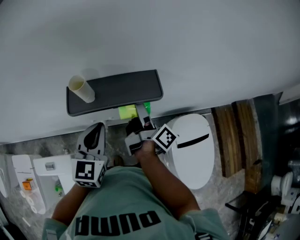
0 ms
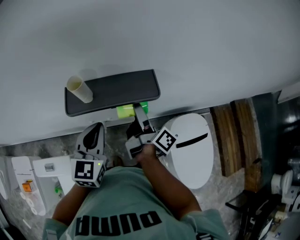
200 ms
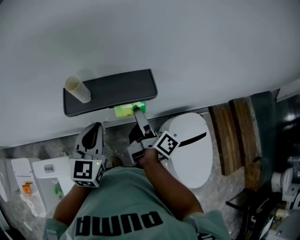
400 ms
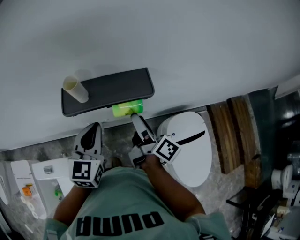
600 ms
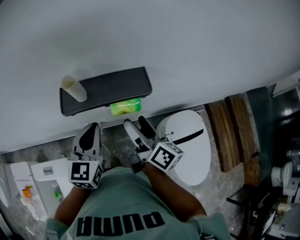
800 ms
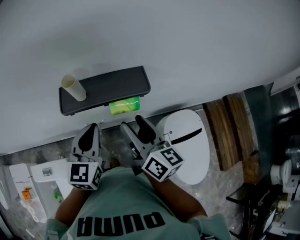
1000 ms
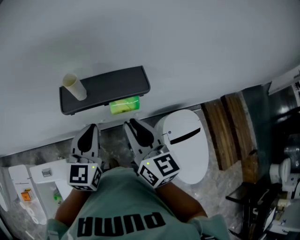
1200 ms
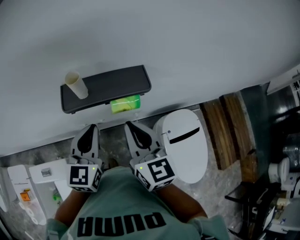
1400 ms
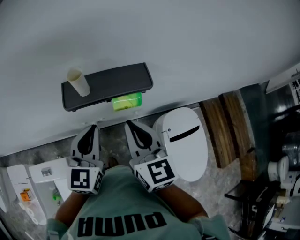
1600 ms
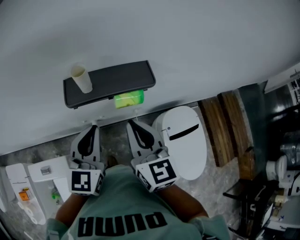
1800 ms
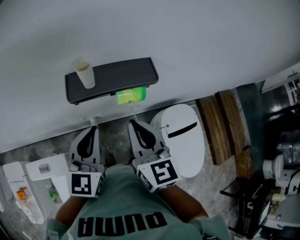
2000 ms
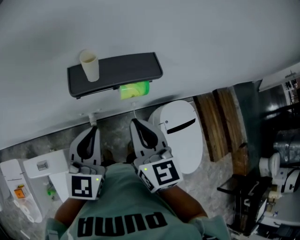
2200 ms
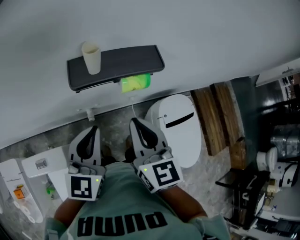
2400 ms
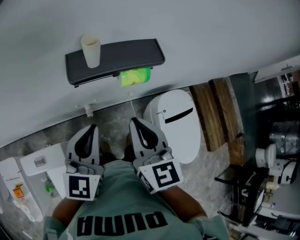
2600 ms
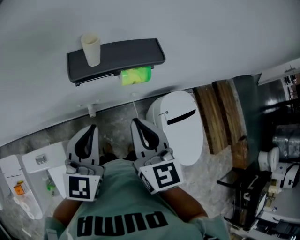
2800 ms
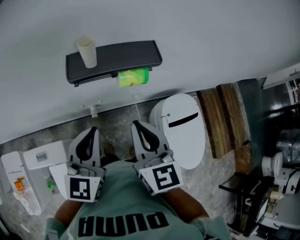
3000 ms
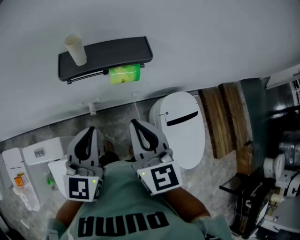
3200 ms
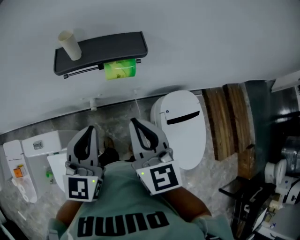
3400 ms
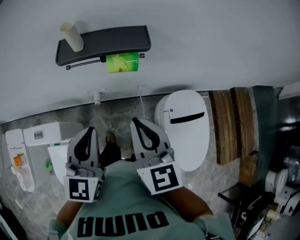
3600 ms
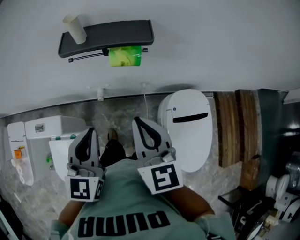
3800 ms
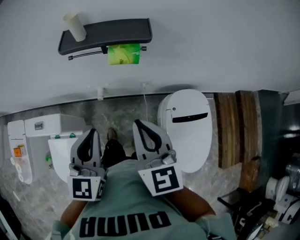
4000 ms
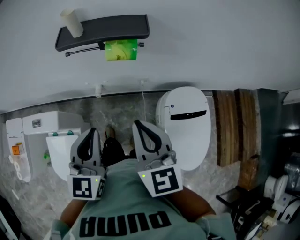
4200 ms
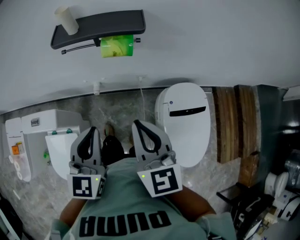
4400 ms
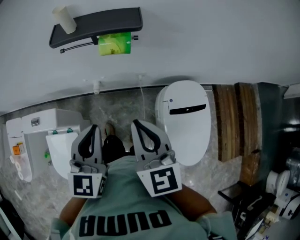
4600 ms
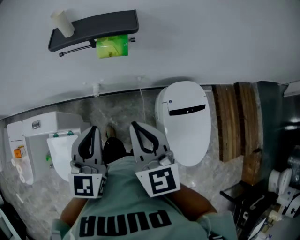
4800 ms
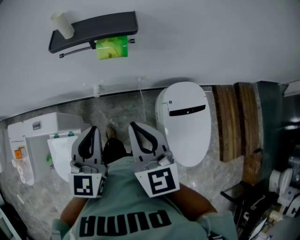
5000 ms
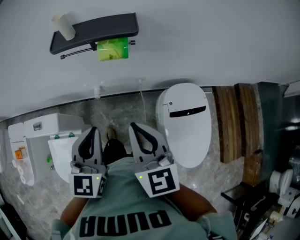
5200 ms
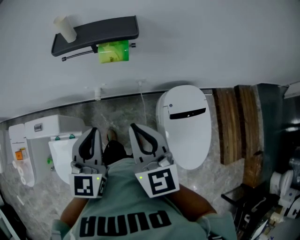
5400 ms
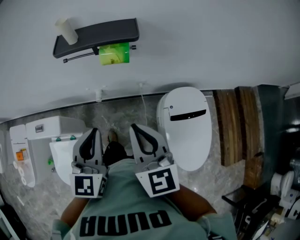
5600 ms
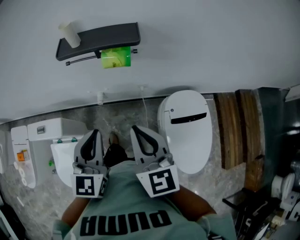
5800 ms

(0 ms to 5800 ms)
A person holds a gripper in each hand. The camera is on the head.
0 ms - 1400 ms: The right gripper travels backward and upward by roughly 15 cm, rolls counterclockwise, seen from behind, by roughly 80 degrees, and closes up.
1400 ms - 2800 ms: Both grippers move backward, approximately 5 cm.
2800 ms - 4400 ms: The right gripper is displaced to the right and backward by about 15 cm. The left gripper is displaced backward and to the right by approximately 15 cm.
4400 ms - 5800 ms: Both grippers stay about where they are.

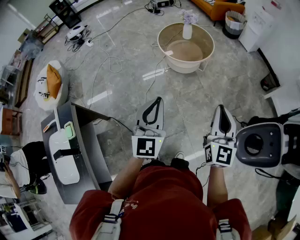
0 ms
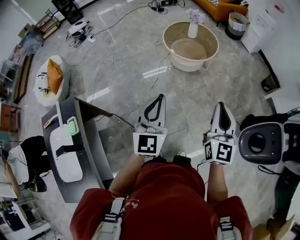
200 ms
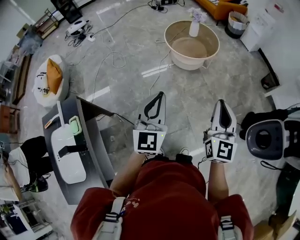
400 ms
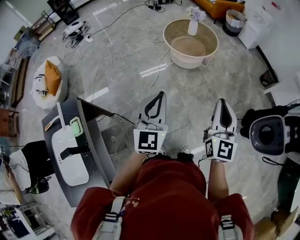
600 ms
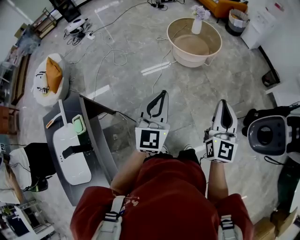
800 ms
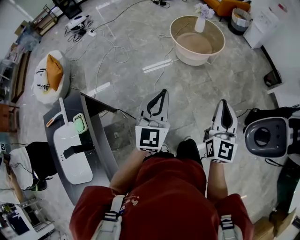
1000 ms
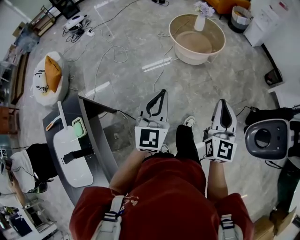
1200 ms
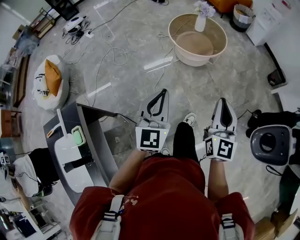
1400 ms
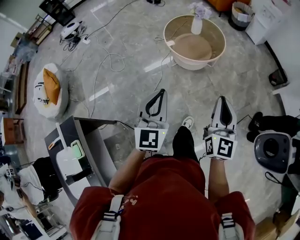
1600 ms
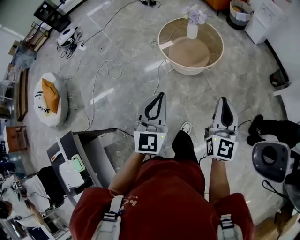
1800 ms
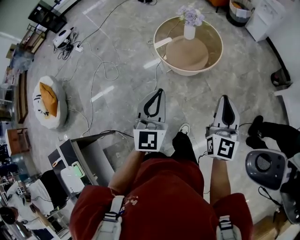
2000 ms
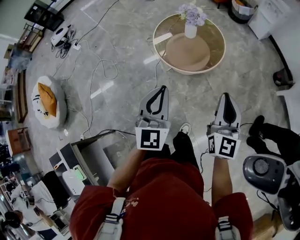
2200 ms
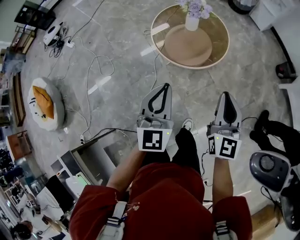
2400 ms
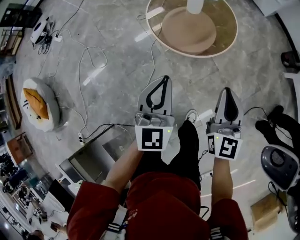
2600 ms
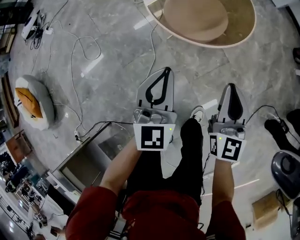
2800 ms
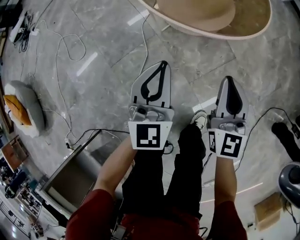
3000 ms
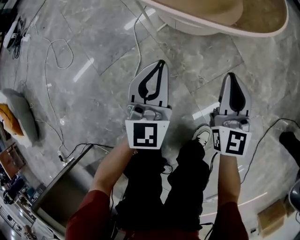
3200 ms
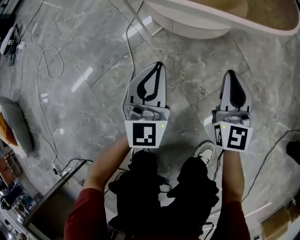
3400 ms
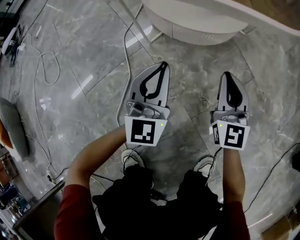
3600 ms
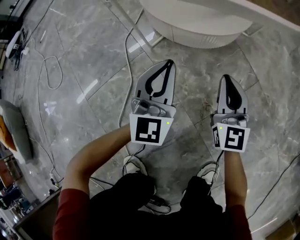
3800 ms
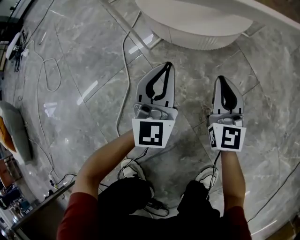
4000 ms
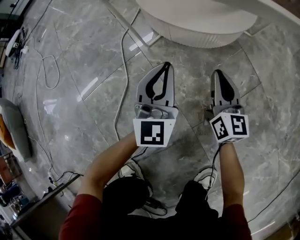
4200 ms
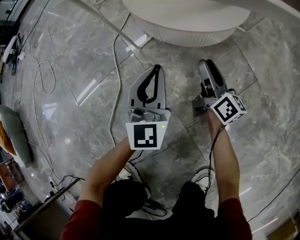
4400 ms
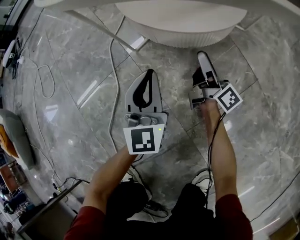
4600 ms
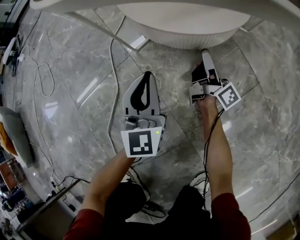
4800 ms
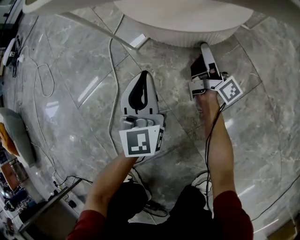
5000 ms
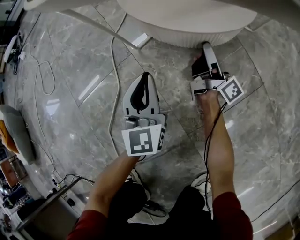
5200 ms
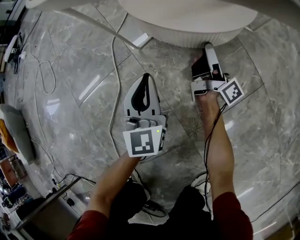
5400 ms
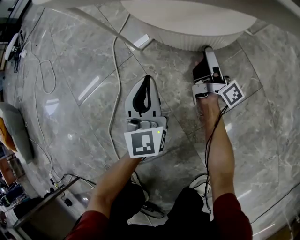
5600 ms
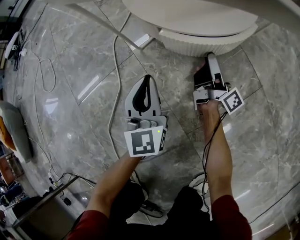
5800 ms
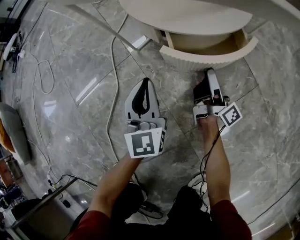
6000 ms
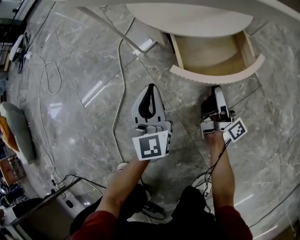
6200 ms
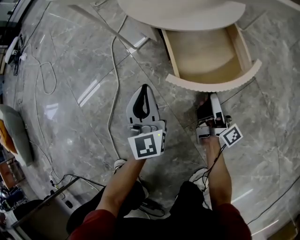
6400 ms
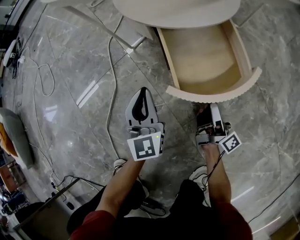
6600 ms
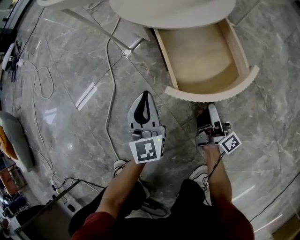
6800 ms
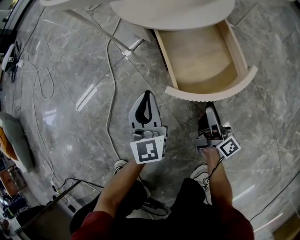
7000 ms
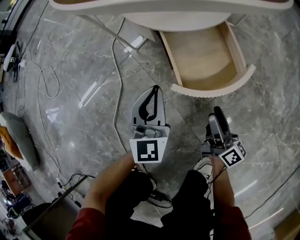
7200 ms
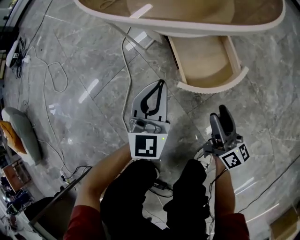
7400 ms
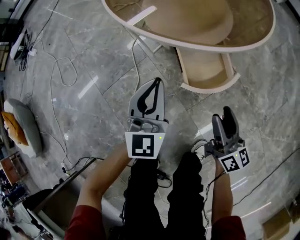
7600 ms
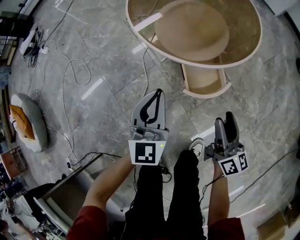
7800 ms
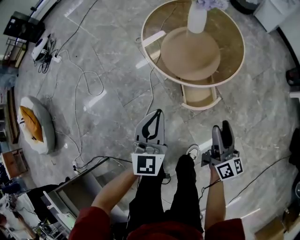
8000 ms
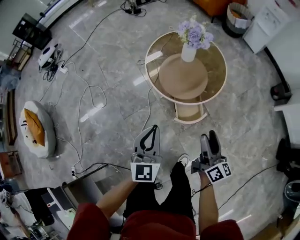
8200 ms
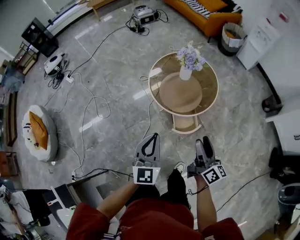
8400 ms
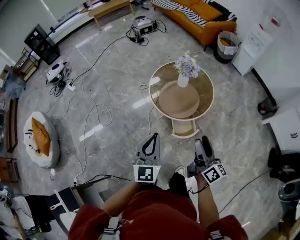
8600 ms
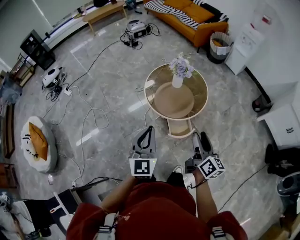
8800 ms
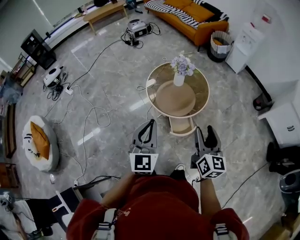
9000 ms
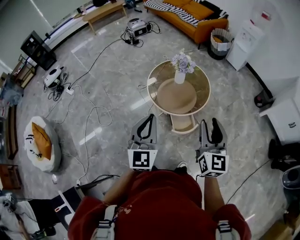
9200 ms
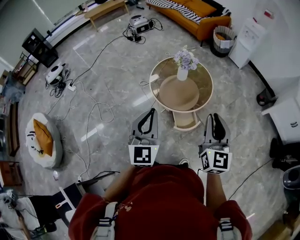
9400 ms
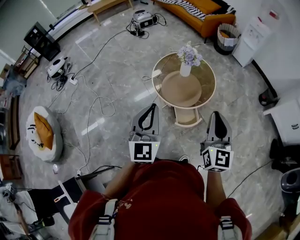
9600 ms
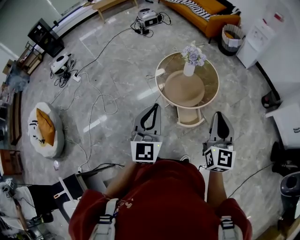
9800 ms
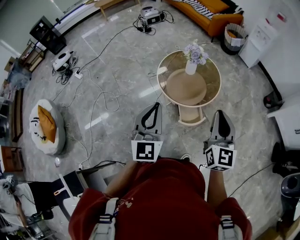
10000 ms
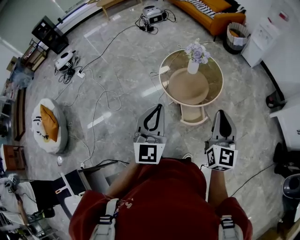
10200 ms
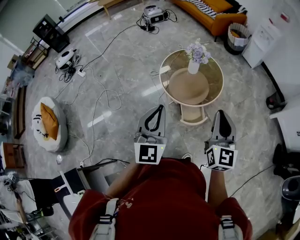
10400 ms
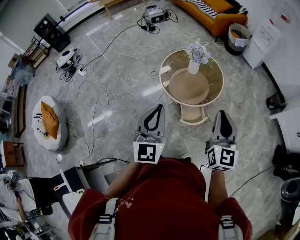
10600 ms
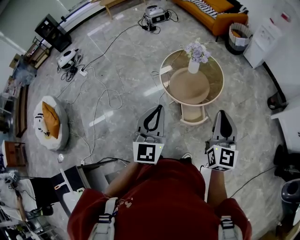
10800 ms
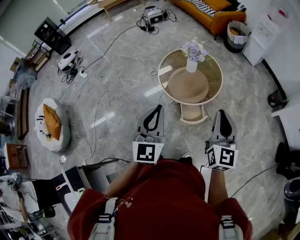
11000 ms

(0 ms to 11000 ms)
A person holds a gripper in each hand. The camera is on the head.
0 ms - 1600 ms: The two grippers go about 15 cm forward and to the left.
1600 ms - 3200 ms: The two grippers go approximately 70 cm downward and forward.
3200 ms - 4800 ms: The right gripper heads downward and forward, covering about 35 cm, rotates around the line of its fingers by approximately 70 degrees, clockwise from behind, and opens; the left gripper heads downward, covering some 25 cm.
4800 ms - 6200 ms: The right gripper moves backward, some 10 cm.
6200 ms - 7800 ms: The grippers both shift upward by roughly 40 cm. The right gripper turns by about 40 degrees.
7800 ms - 9400 ms: Both grippers move upward, about 50 cm. The right gripper rotates about 40 degrees, and closes.
9400 ms - 11000 ms: There are only small adjustments of the grippers.

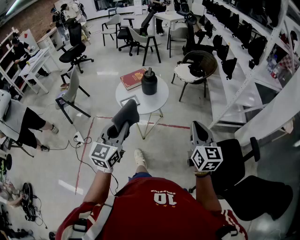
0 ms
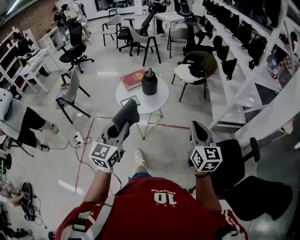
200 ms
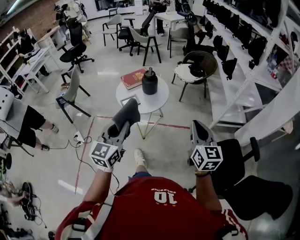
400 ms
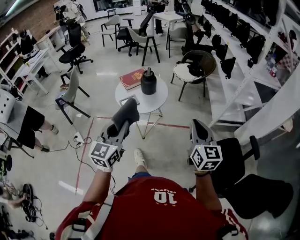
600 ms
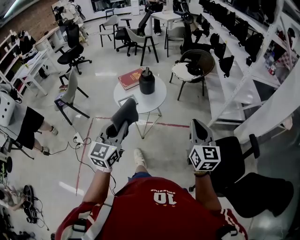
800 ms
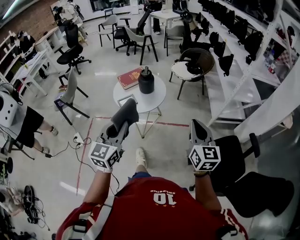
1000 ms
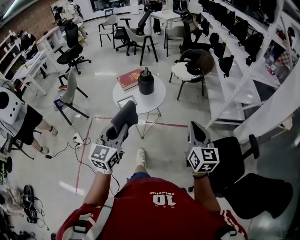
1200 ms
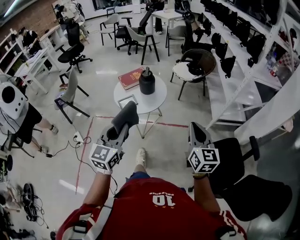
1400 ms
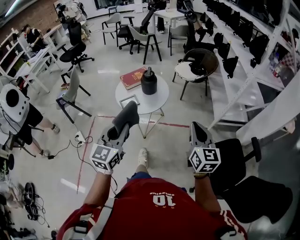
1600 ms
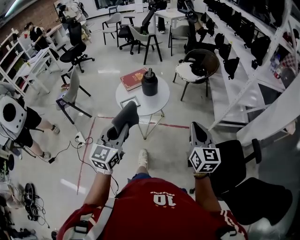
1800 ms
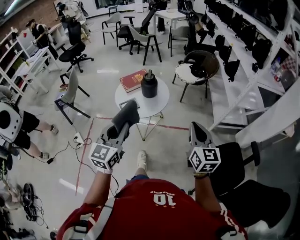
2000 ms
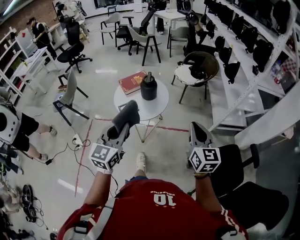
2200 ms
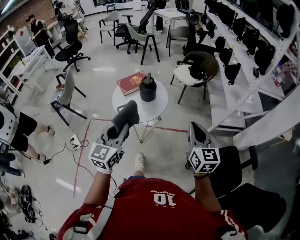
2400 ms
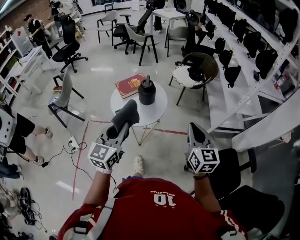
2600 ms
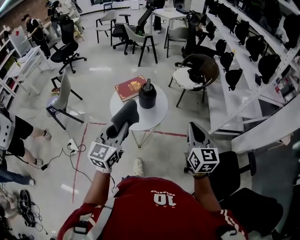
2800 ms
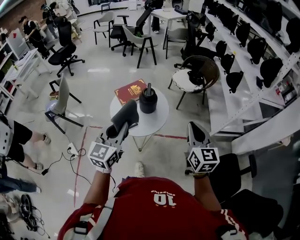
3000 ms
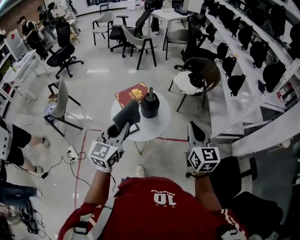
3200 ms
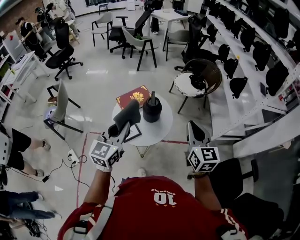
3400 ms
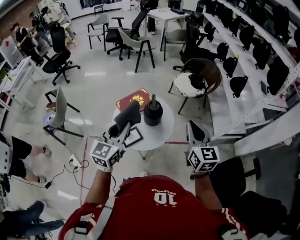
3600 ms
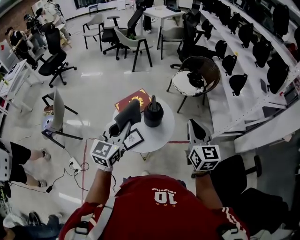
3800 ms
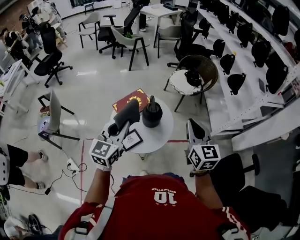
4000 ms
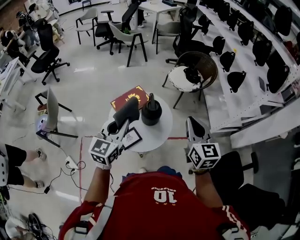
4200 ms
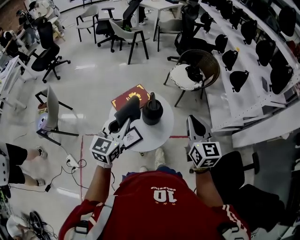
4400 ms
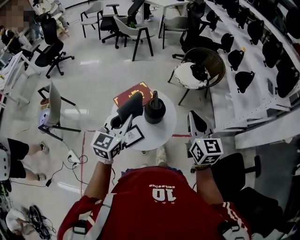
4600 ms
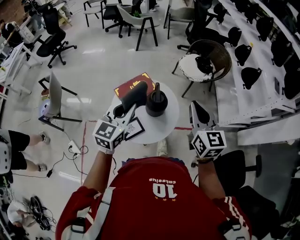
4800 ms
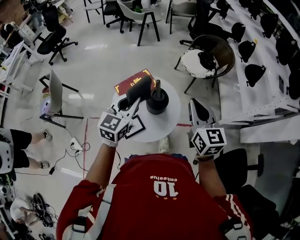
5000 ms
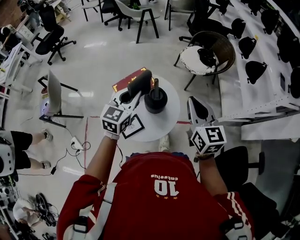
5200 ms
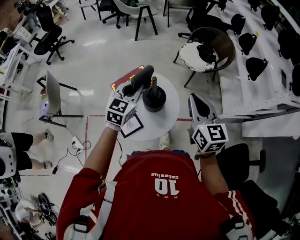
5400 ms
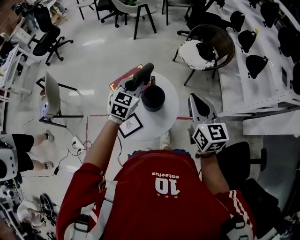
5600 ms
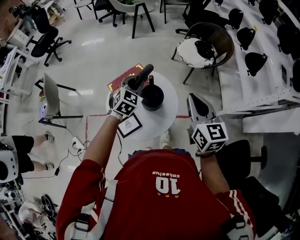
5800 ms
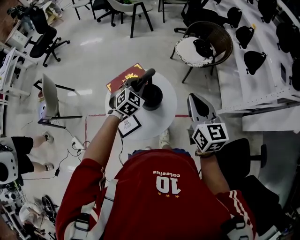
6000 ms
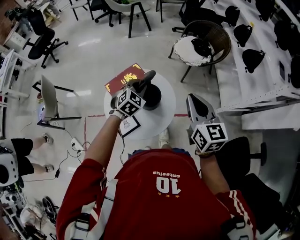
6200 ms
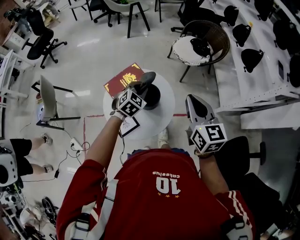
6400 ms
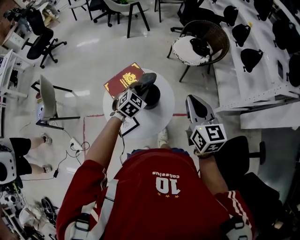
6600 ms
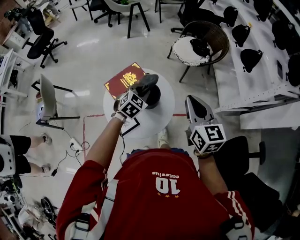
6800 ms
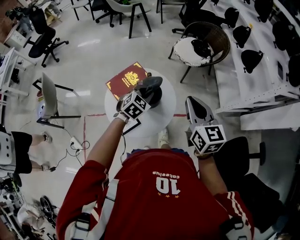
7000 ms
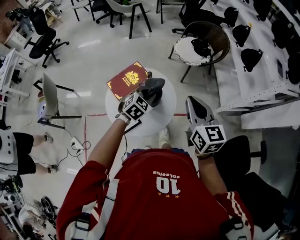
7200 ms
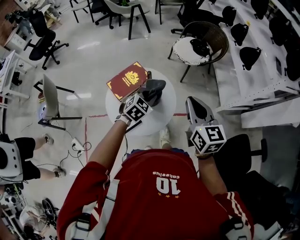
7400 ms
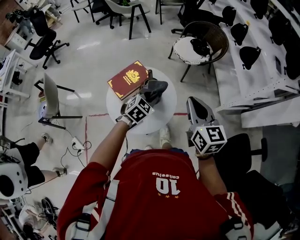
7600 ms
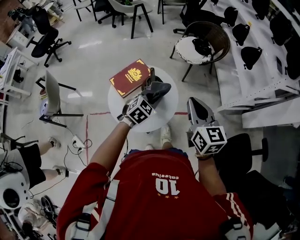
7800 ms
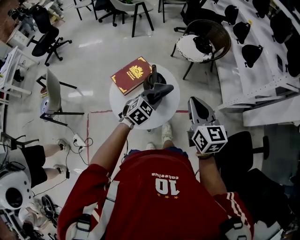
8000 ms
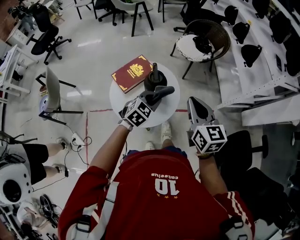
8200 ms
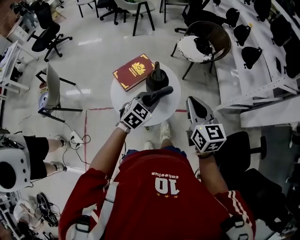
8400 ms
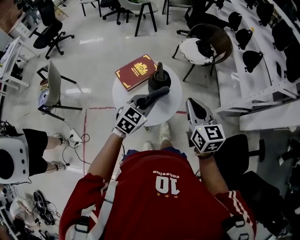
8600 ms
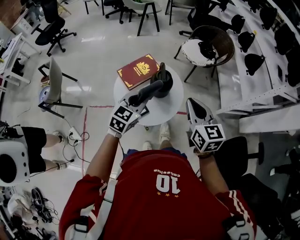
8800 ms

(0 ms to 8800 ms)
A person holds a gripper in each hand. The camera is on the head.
0 ms - 1400 ms: The grippers stay close to where they were, moving slightly.
1400 ms - 3000 ms: The left gripper is displaced forward by roughly 20 cm. Meanwhile the right gripper heads forward and to the left, covering some 20 cm.
3000 ms - 4400 ms: The grippers both shift forward and to the left by about 20 cm.
4400 ms - 5800 ms: The right gripper heads forward, covering some 10 cm. The left gripper heads forward and downward, covering roughly 25 cm, and rotates roughly 40 degrees.
5800 ms - 7400 ms: The right gripper goes about 5 cm backward, while the left gripper moves backward and to the right, some 10 cm.
7400 ms - 8800 ms: The right gripper travels backward and to the left by roughly 10 cm. The left gripper heads backward, to the left and upward, covering roughly 15 cm, and changes its angle by roughly 30 degrees.
